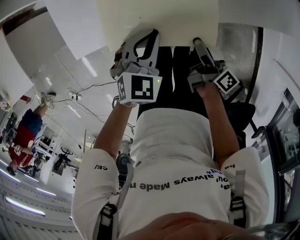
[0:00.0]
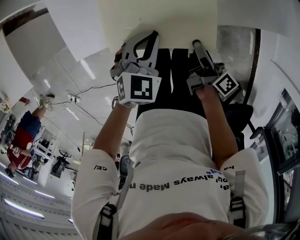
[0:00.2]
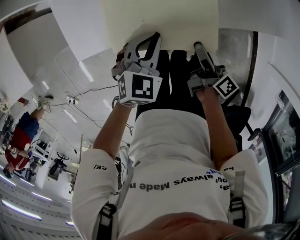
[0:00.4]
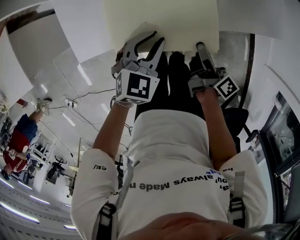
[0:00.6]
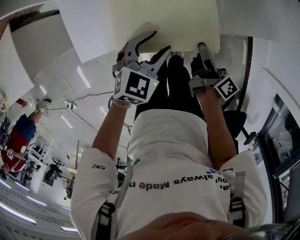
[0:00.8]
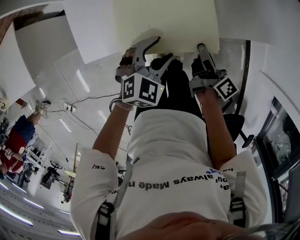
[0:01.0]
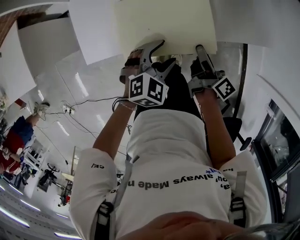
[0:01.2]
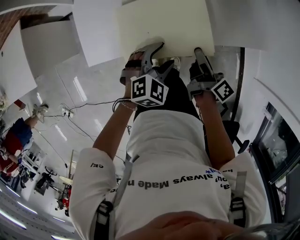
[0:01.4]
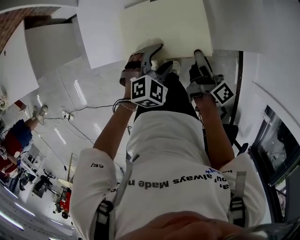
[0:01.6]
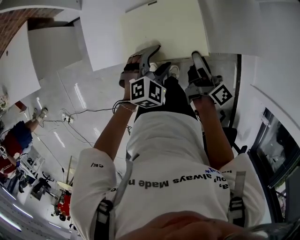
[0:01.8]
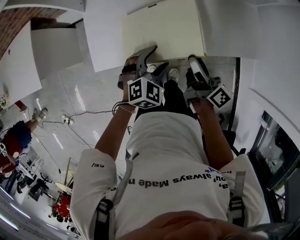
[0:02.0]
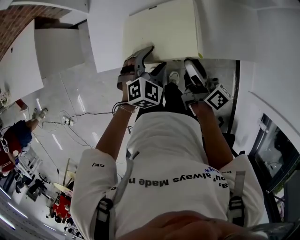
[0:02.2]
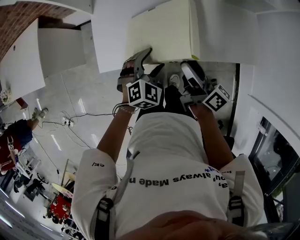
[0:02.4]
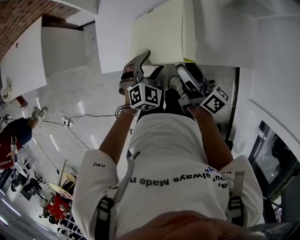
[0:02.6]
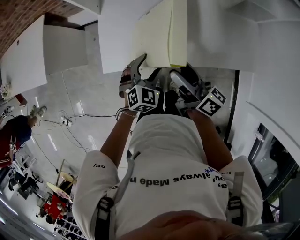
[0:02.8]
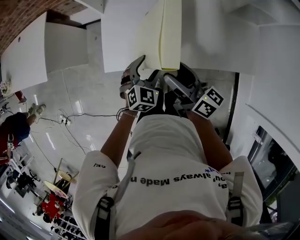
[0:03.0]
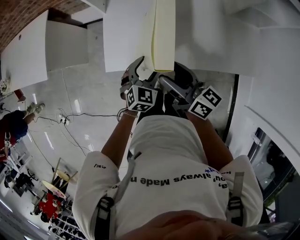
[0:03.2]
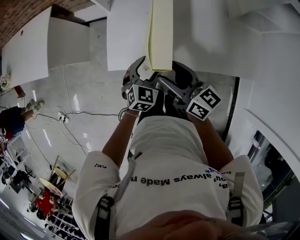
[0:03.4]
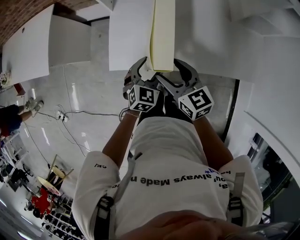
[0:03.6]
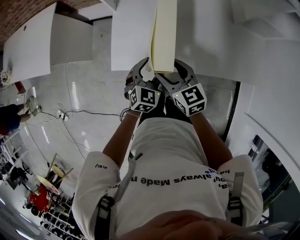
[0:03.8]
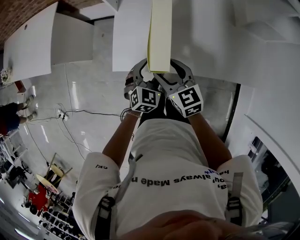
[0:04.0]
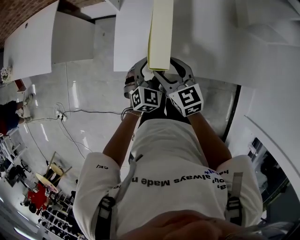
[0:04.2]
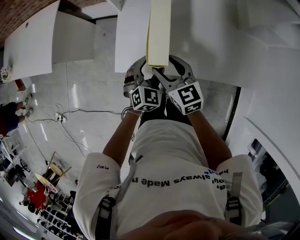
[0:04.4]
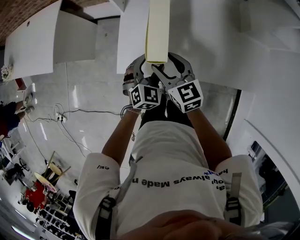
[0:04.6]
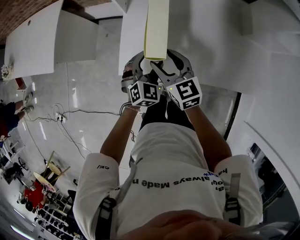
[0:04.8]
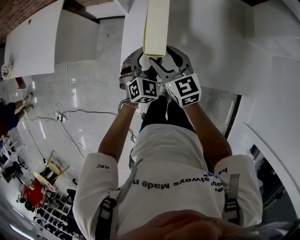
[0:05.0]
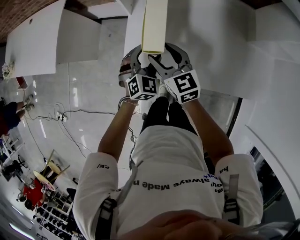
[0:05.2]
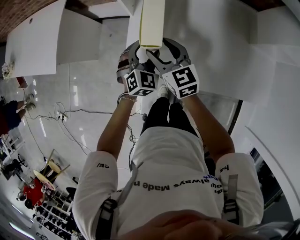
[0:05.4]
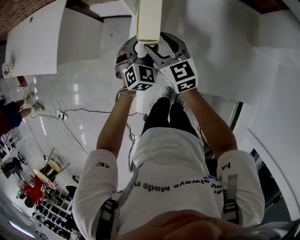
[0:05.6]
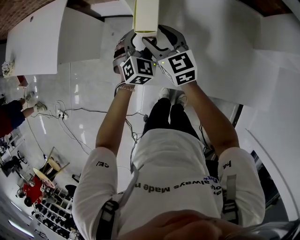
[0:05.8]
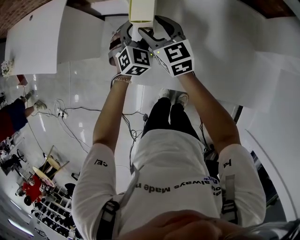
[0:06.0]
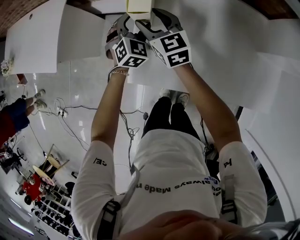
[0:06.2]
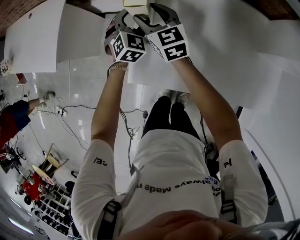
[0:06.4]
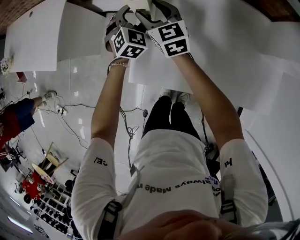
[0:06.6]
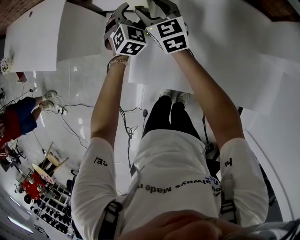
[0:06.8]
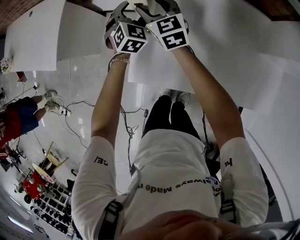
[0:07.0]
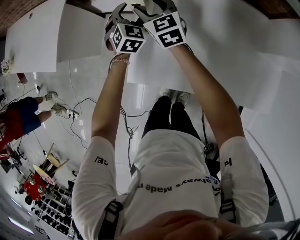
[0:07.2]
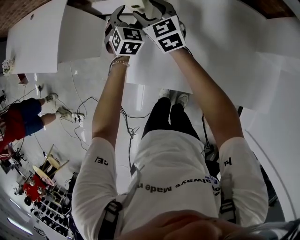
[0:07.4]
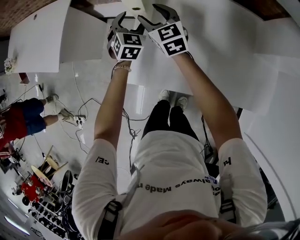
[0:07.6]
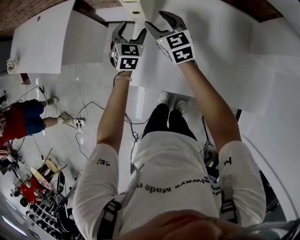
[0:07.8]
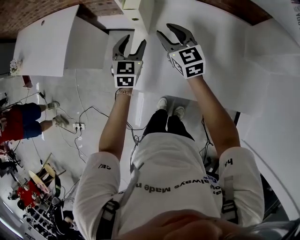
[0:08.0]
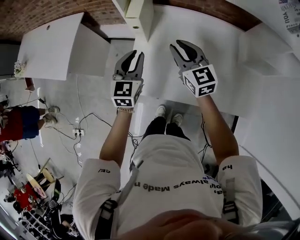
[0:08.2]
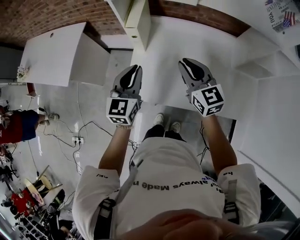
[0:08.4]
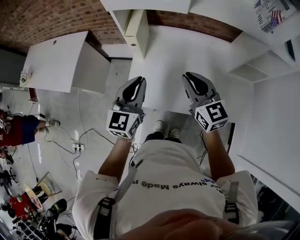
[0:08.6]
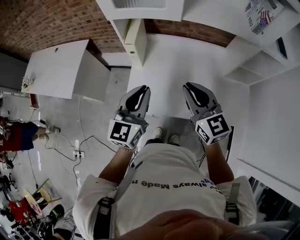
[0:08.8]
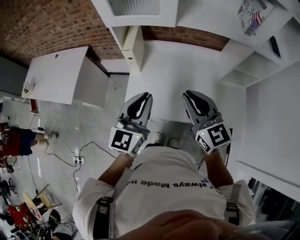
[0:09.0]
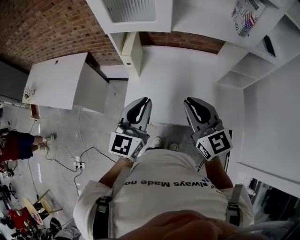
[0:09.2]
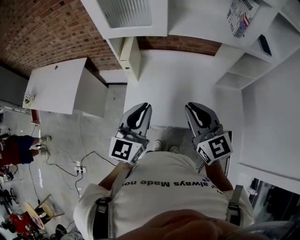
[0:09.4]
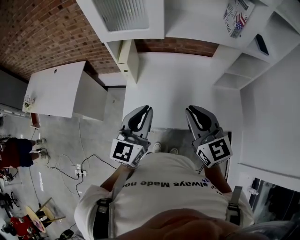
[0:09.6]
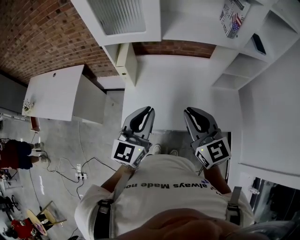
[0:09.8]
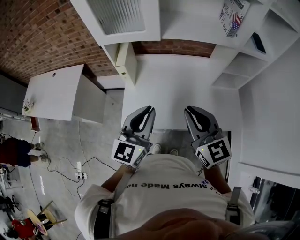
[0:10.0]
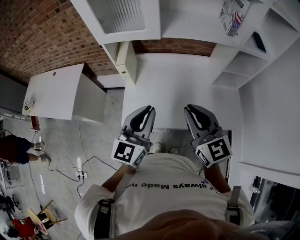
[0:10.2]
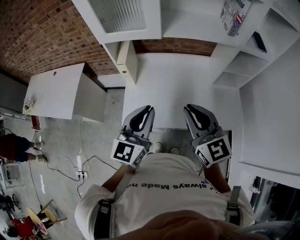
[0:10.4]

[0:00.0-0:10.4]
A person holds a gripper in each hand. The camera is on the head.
0:00.0 to 0:01.4: The left gripper opens up; the right gripper travels upward and forward by some 10 cm.
0:01.4 to 0:03.0: The left gripper shifts by roughly 10 cm, and turns by some 30 degrees, while the right gripper moves upward, approximately 15 cm, and rotates some 40 degrees.
0:03.0 to 0:04.4: The left gripper moves about 5 cm. Meanwhile the right gripper goes approximately 10 cm to the left, forward and downward, and rotates about 50 degrees.
0:04.4 to 0:06.0: The two grippers go about 25 cm forward.
0:06.0 to 0:07.4: The two grippers go about 5 cm forward.
0:07.4 to 0:09.0: The right gripper travels backward, upward and to the right by some 50 cm, and closes. Meanwhile the left gripper shifts about 50 cm backward and upward, angles its fingers upward, by some 30 degrees, and closes up.
0:09.0 to 0:10.4: The left gripper changes place by about 5 cm. The right gripper changes place by some 5 cm.

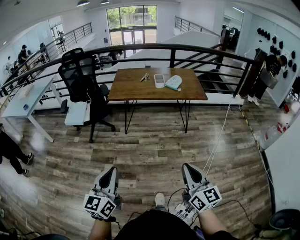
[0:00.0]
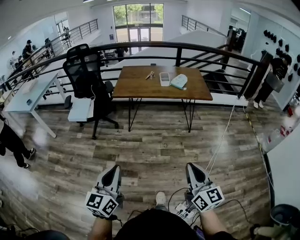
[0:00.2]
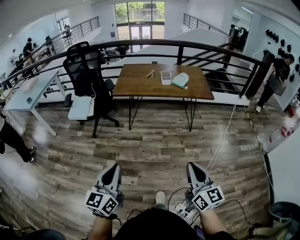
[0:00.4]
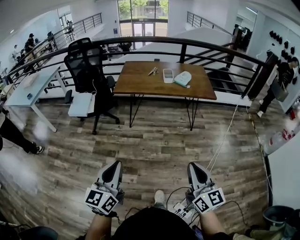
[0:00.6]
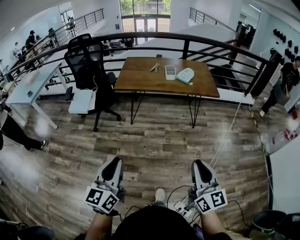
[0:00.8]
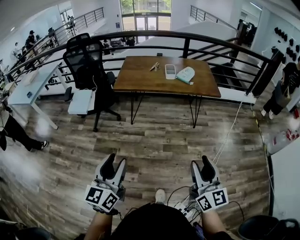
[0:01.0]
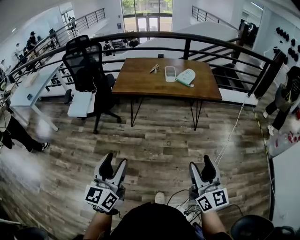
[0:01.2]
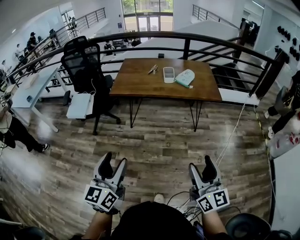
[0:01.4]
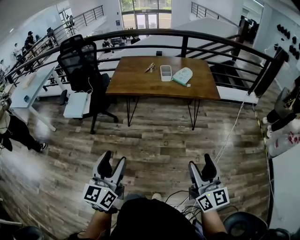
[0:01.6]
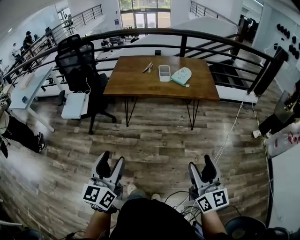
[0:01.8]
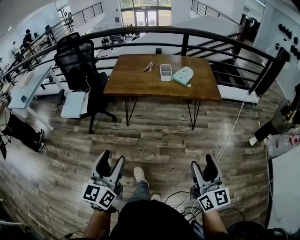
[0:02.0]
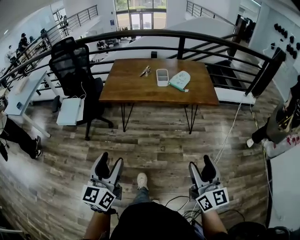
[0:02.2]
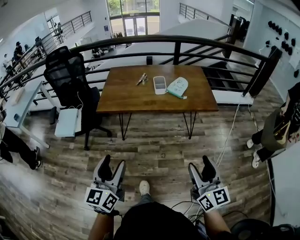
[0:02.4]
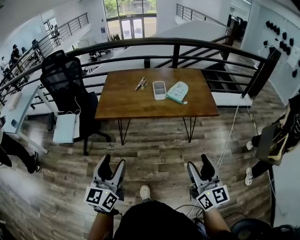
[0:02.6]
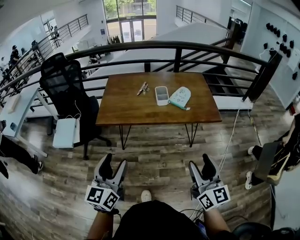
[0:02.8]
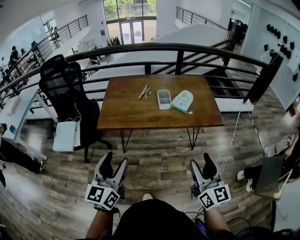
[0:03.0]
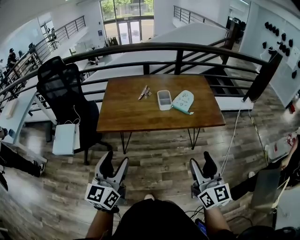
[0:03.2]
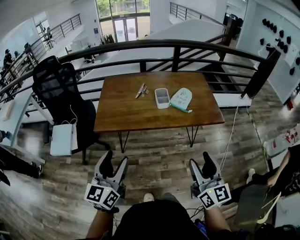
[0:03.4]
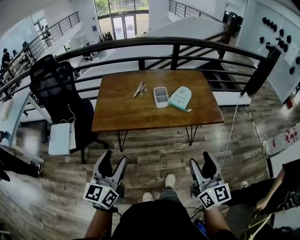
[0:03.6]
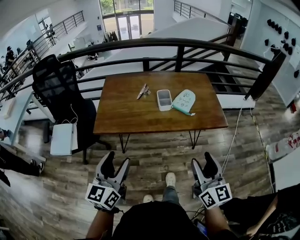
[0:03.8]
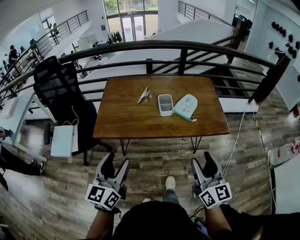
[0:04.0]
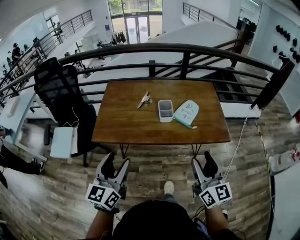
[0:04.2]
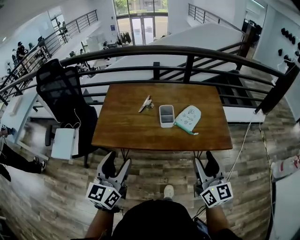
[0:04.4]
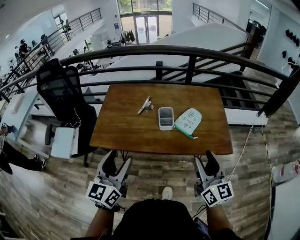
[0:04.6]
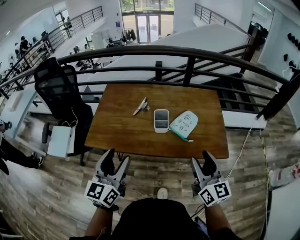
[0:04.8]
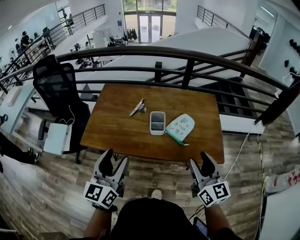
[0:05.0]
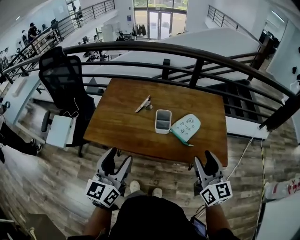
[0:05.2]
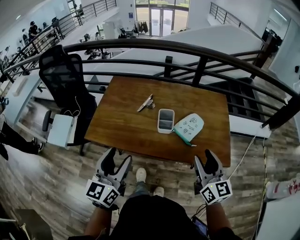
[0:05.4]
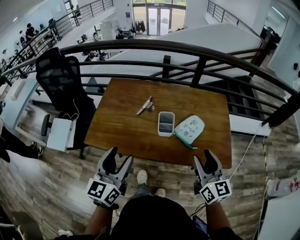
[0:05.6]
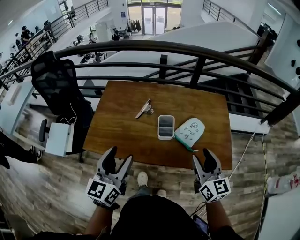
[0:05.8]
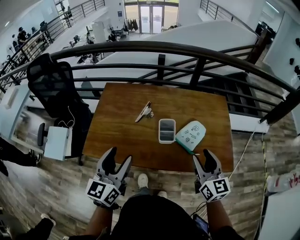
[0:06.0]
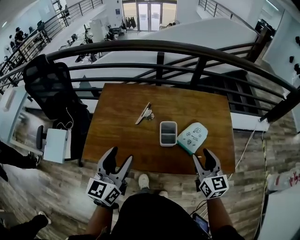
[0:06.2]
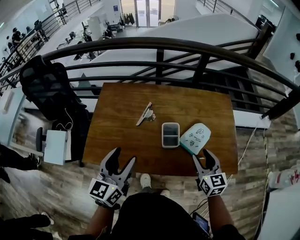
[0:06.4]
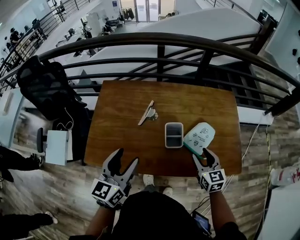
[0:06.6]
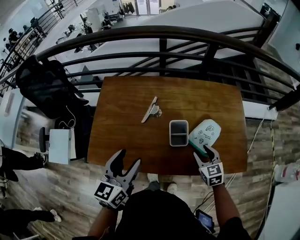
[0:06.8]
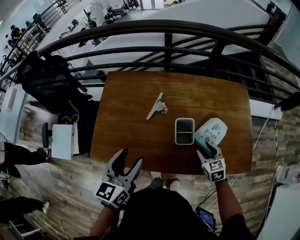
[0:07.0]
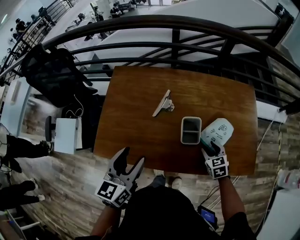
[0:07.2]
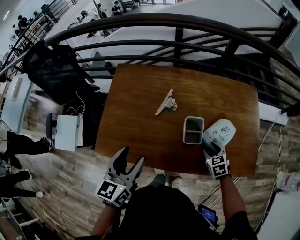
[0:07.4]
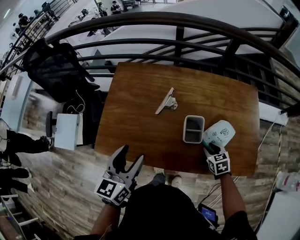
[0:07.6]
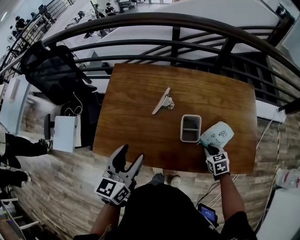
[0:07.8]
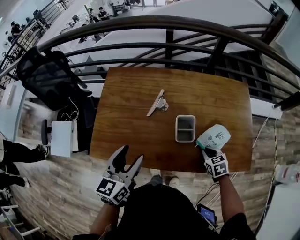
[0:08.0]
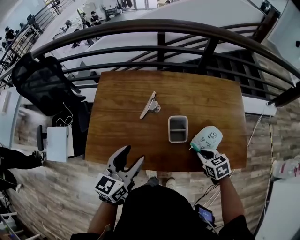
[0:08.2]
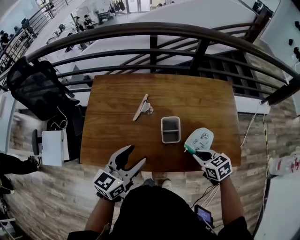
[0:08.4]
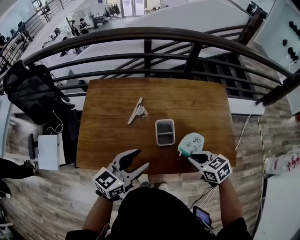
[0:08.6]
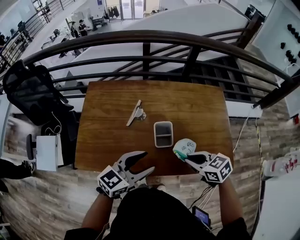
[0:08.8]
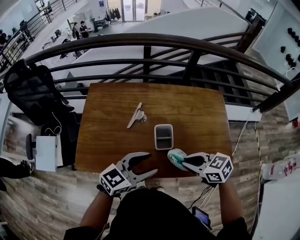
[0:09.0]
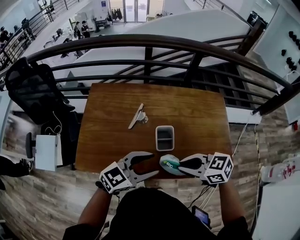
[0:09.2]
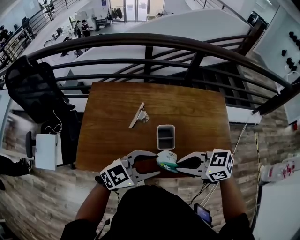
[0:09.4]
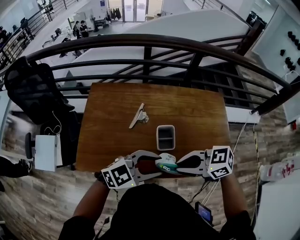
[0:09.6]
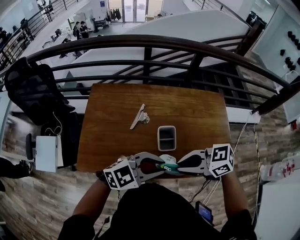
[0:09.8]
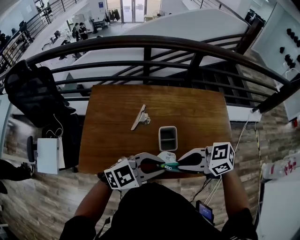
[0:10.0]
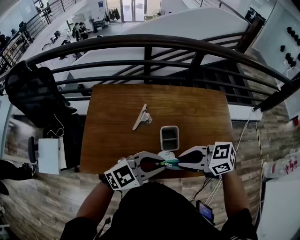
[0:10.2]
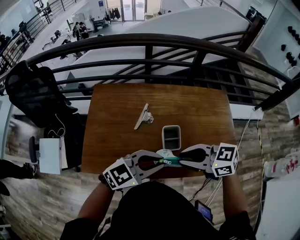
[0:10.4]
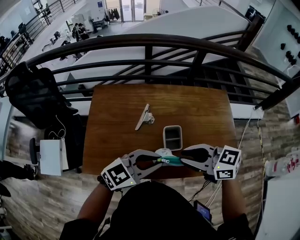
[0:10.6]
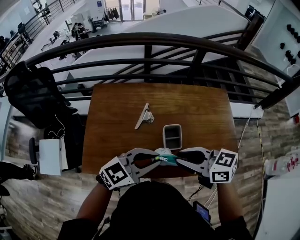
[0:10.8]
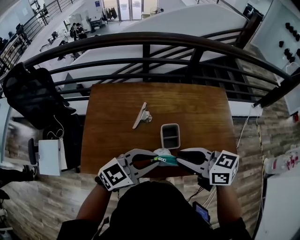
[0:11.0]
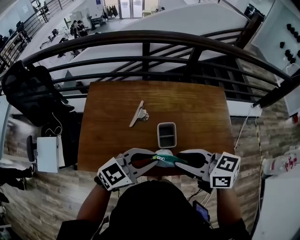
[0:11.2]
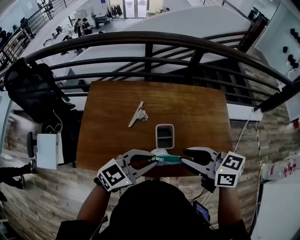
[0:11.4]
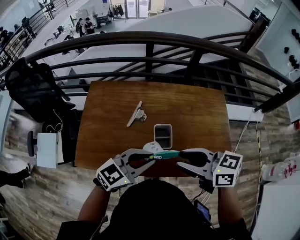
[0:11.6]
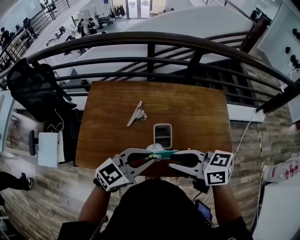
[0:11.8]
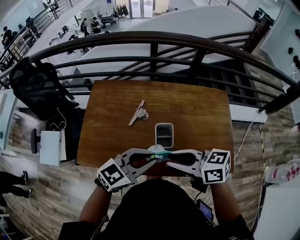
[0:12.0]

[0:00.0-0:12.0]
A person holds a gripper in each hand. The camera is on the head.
0:00.0 to 0:01.6: The two grippers go about 20 cm forward and to the right. The left gripper opens up. Meanwhile the right gripper opens.
0:01.6 to 0:03.0: Both grippers travel together forward, roughly 30 cm.
0:03.0 to 0:04.4: Both grippers move forward, roughly 20 cm.
0:04.4 to 0:06.0: Both grippers travel together forward, approximately 20 cm.
0:06.0 to 0:07.6: The right gripper moves downward and forward, about 30 cm, and tips its fingers downward by roughly 50 degrees, while the left gripper shifts some 10 cm forward and downward.
0:07.6 to 0:09.0: The right gripper moves upward, approximately 20 cm, changes its angle by some 30 degrees, and closes. The left gripper changes place by roughly 15 cm, and rotates approximately 50 degrees.
0:09.0 to 0:10.4: The left gripper closes its fingers; the right gripper travels upward by roughly 10 cm.

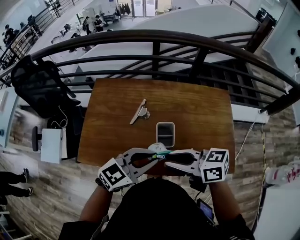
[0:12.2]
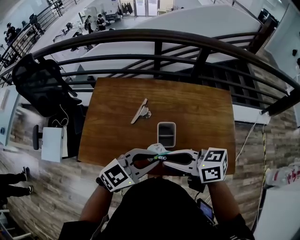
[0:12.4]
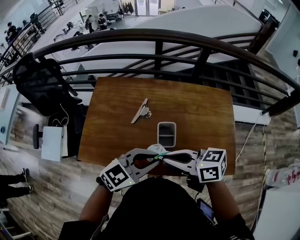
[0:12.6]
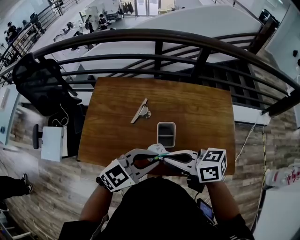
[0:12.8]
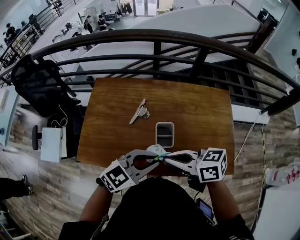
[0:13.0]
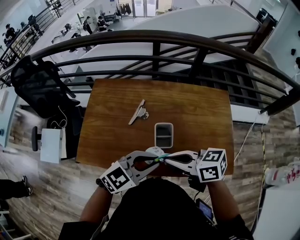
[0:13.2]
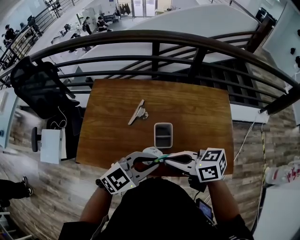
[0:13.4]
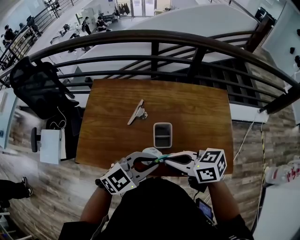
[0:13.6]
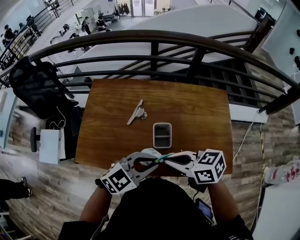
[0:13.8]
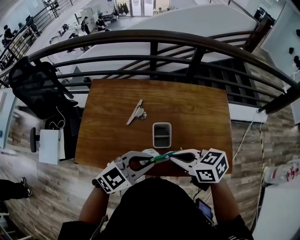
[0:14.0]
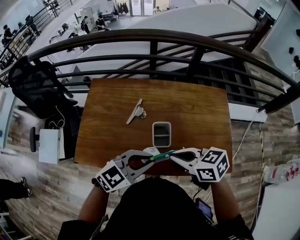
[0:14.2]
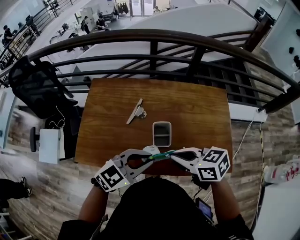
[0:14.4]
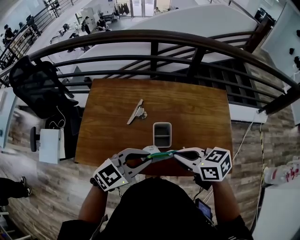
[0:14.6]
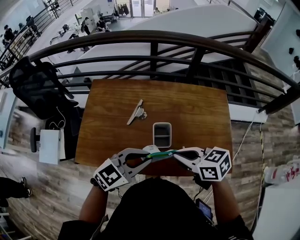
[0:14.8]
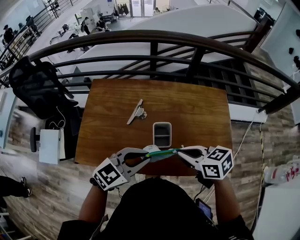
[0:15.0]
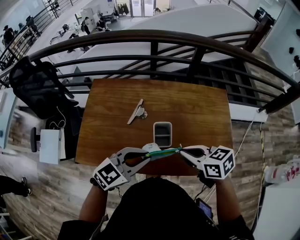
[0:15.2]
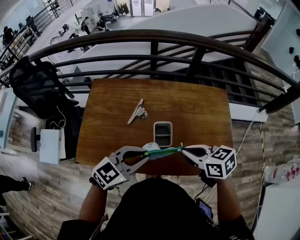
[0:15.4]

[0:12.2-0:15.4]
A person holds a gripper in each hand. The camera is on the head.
0:12.2 to 0:13.8: The right gripper closes its fingers.
0:13.8 to 0:15.4: The right gripper shifts by approximately 10 cm.
